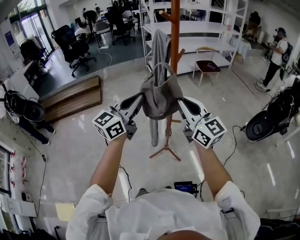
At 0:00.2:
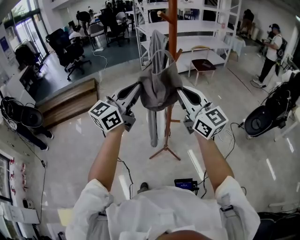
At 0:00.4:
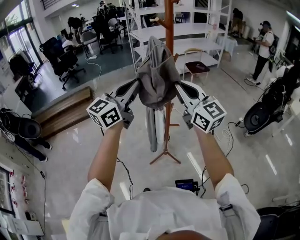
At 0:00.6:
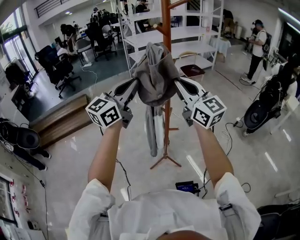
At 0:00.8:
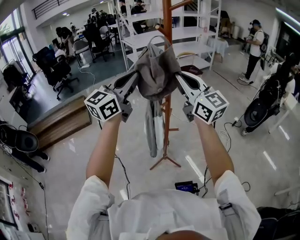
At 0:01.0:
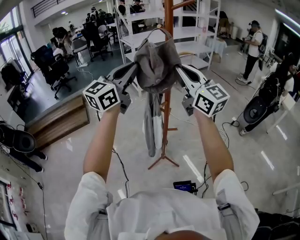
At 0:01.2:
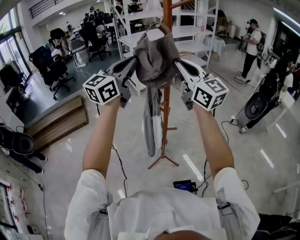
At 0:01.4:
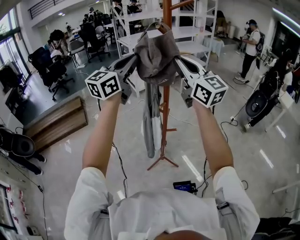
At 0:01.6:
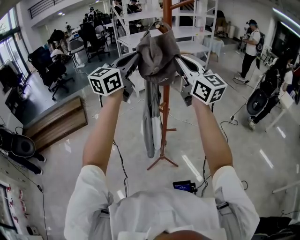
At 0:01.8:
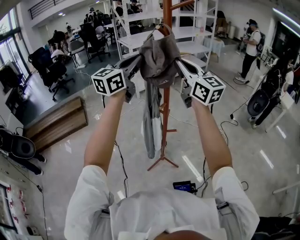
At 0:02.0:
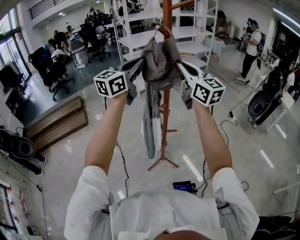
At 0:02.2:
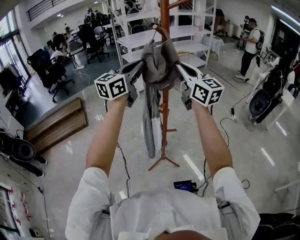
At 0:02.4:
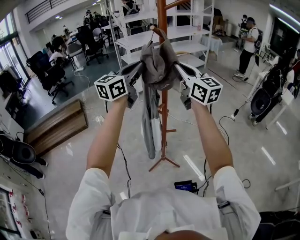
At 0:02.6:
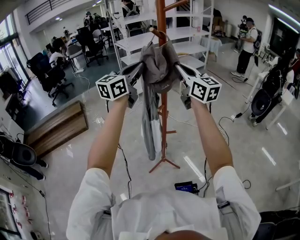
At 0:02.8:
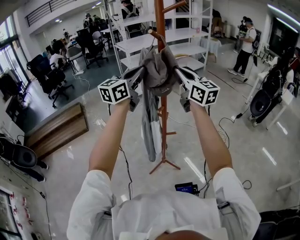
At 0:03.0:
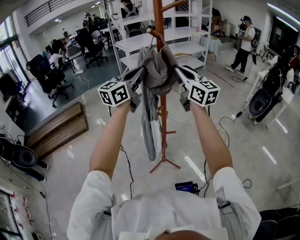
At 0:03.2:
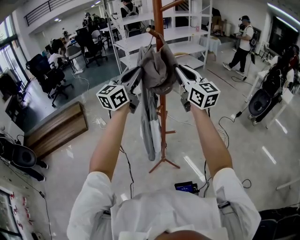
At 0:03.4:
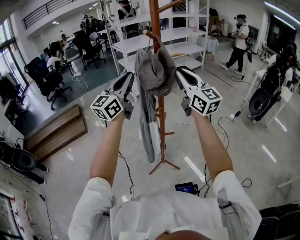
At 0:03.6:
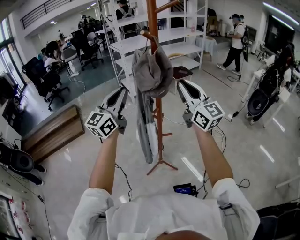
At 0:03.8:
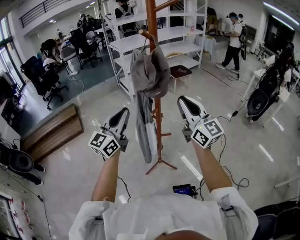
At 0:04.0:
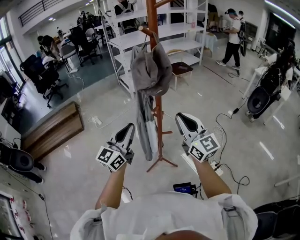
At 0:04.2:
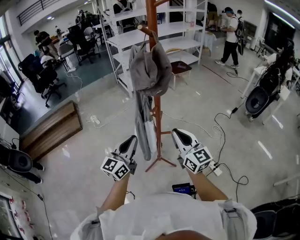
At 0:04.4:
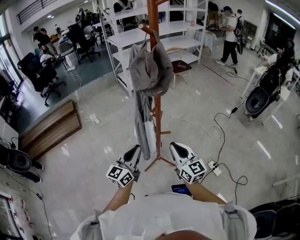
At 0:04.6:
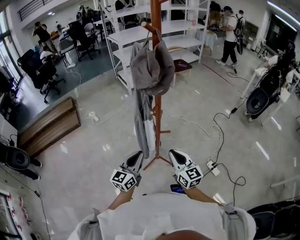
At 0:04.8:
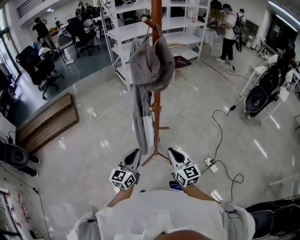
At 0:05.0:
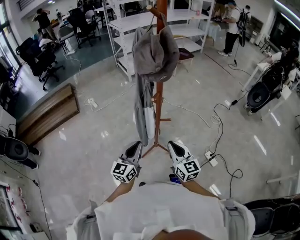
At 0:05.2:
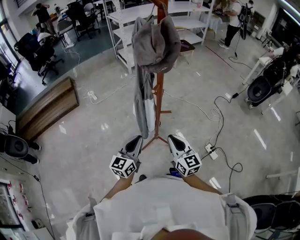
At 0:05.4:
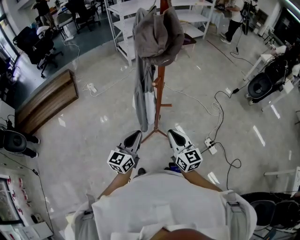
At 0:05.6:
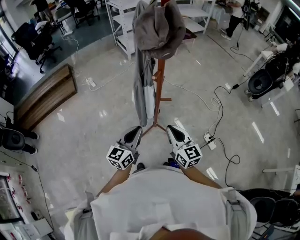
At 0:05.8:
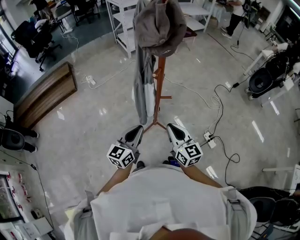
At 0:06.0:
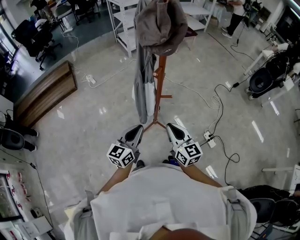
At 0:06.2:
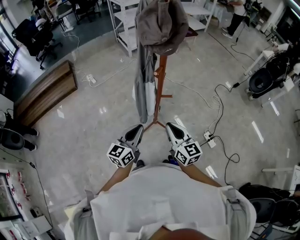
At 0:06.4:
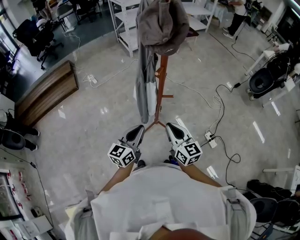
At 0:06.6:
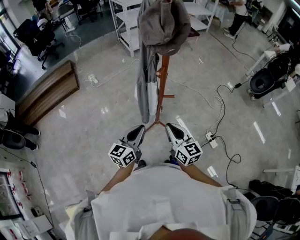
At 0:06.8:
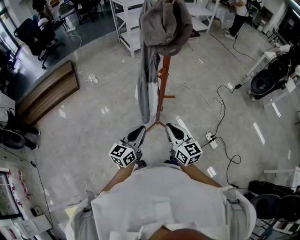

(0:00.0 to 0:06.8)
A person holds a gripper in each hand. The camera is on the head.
0:00.0 - 0:01.4: Both grippers move upward and forward, some 20 cm.
0:01.4 - 0:02.8: The left gripper goes about 5 cm downward. The right gripper goes approximately 10 cm downward and forward.
0:02.8 - 0:04.0: The grippers both shift downward and backward by some 20 cm.
0:04.0 - 0:05.4: The right gripper goes approximately 20 cm downward, and turns by approximately 20 degrees. The left gripper goes about 20 cm downward and backward.
0:05.4 - 0:06.8: The grippers stay close to where they were, moving slightly.

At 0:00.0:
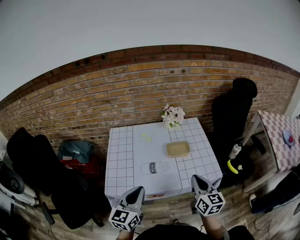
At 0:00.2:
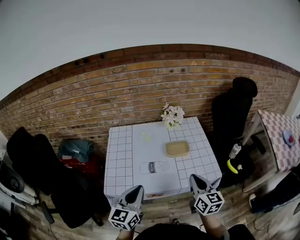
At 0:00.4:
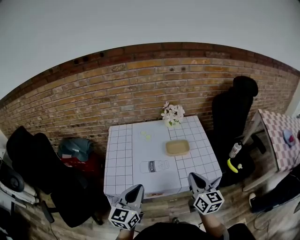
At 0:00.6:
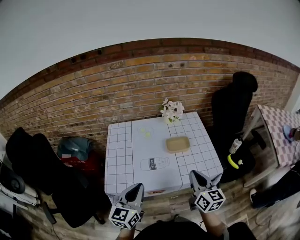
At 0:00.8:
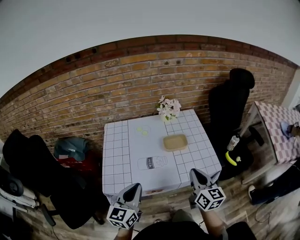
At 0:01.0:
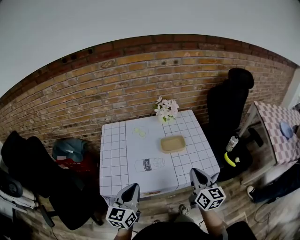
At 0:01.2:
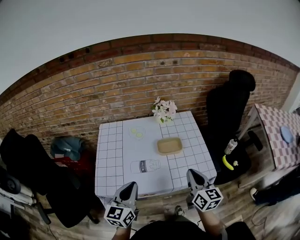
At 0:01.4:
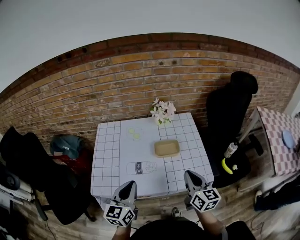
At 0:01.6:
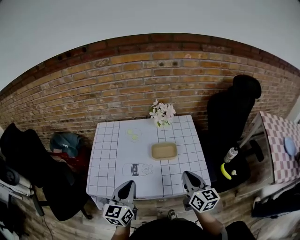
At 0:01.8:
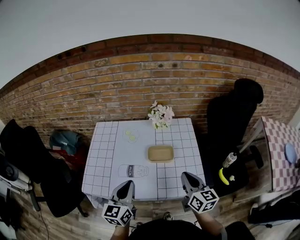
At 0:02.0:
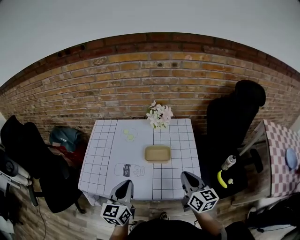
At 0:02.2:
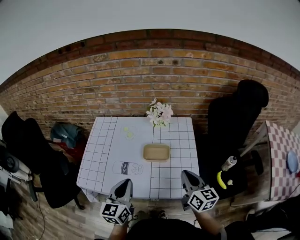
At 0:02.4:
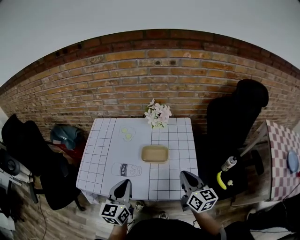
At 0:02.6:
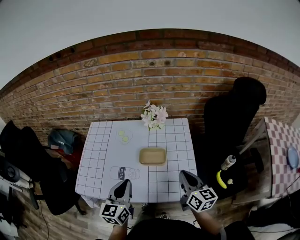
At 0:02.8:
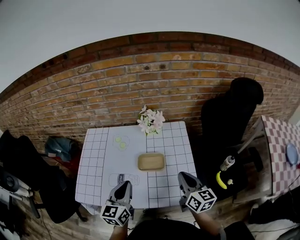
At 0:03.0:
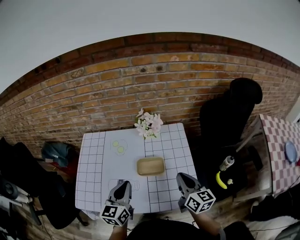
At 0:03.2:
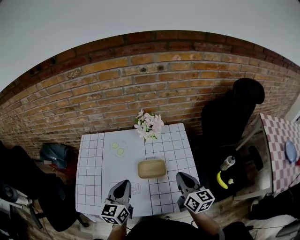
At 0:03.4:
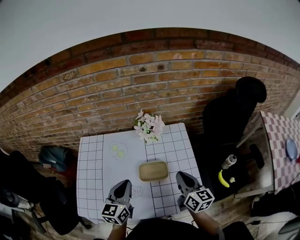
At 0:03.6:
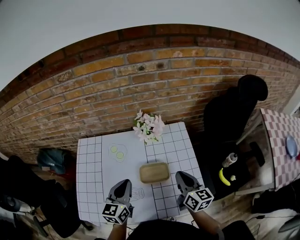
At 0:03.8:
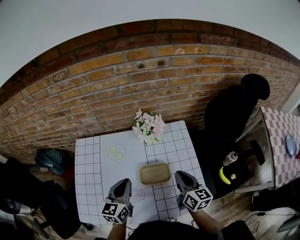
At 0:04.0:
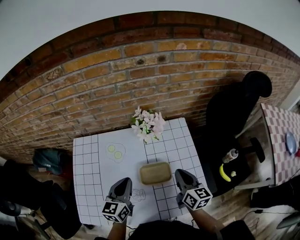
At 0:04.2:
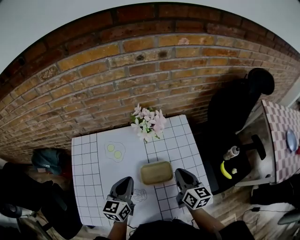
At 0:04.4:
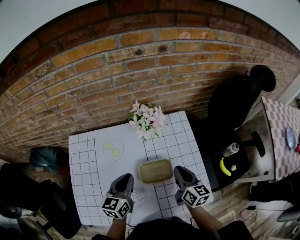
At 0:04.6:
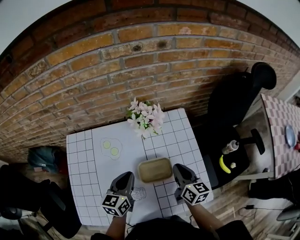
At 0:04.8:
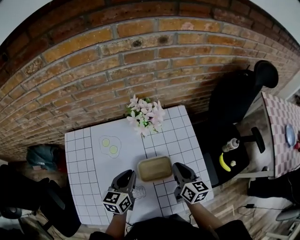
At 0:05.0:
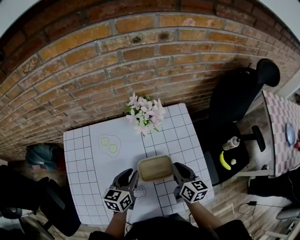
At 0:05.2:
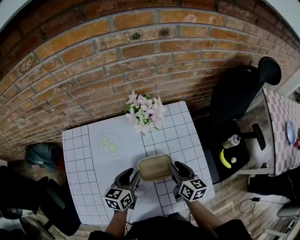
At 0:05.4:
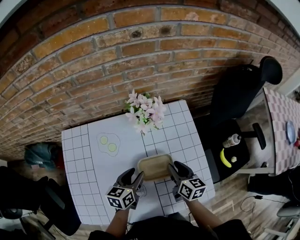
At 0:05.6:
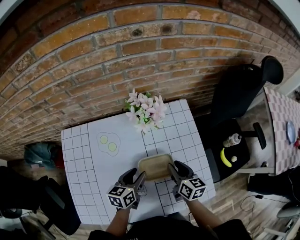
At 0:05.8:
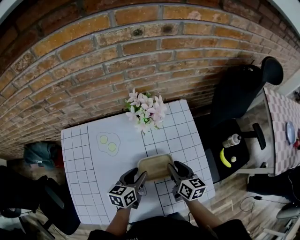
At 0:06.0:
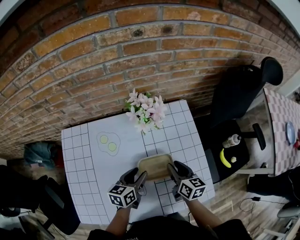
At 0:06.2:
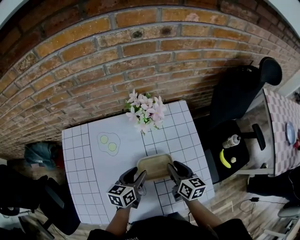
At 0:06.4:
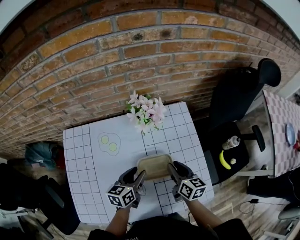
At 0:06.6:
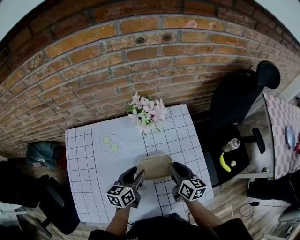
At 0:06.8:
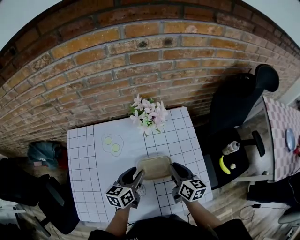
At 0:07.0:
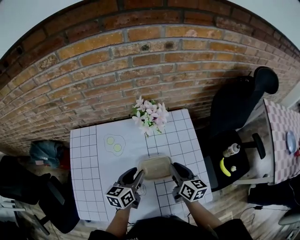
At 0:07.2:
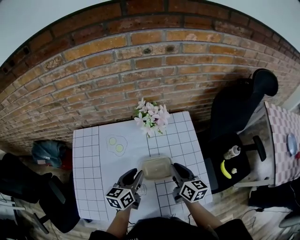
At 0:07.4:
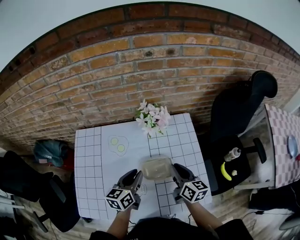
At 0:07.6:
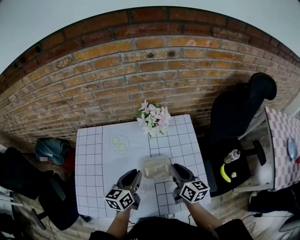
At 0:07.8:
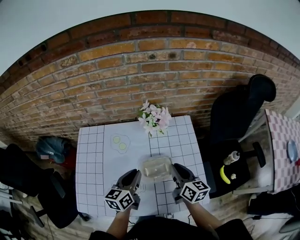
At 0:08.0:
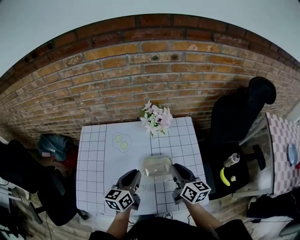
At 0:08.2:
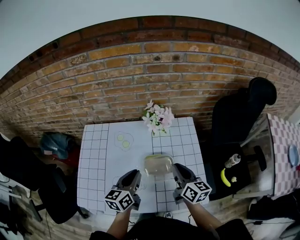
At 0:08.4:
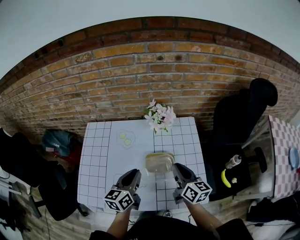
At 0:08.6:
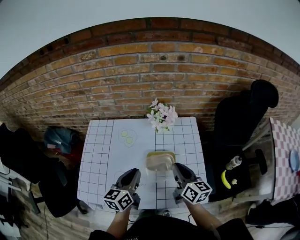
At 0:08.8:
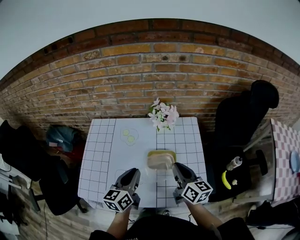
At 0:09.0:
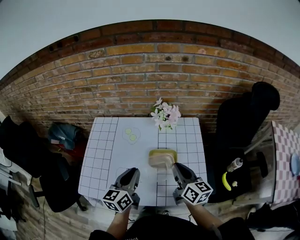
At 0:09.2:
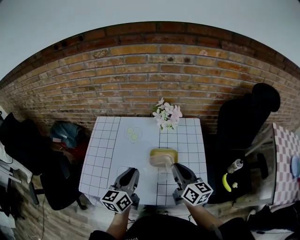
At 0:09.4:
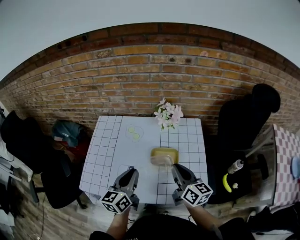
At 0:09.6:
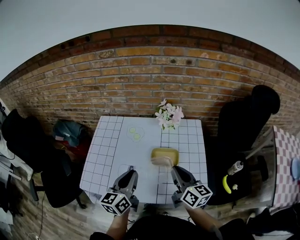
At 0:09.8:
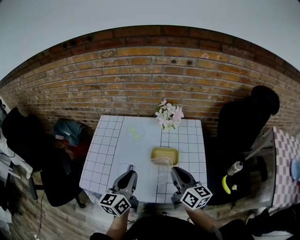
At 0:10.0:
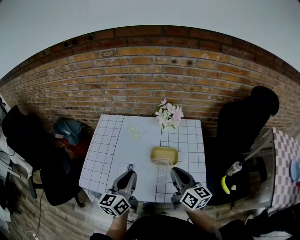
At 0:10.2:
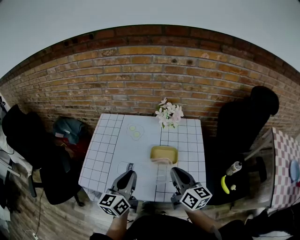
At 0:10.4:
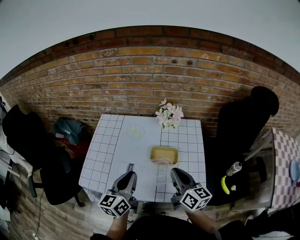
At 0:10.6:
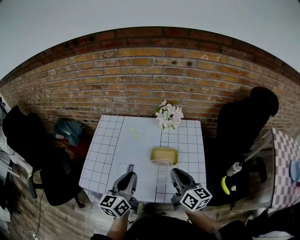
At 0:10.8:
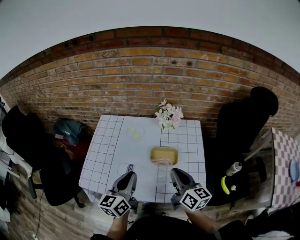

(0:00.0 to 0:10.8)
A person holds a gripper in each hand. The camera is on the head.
0:00.0 - 0:01.6: Both grippers move forward and to the right, roughly 10 cm.
0:01.6 - 0:03.0: Both grippers travel together forward and to the right, roughly 15 cm.
0:03.0 - 0:04.6: Both grippers move forward and downward, roughly 15 cm.
0:04.6 - 0:06.2: The two grippers go approximately 5 cm downward. The left gripper opens, while the right gripper opens up.
0:06.2 - 0:07.8: Both grippers travel together upward, some 10 cm. The left gripper closes its fingers.
0:07.8 - 0:09.2: Both grippers travel together backward and upward, roughly 10 cm.
0:09.2 - 0:10.8: The right gripper ends up some 5 cm from where it was. Meanwhile the left gripper is displaced backward by roughly 5 cm.

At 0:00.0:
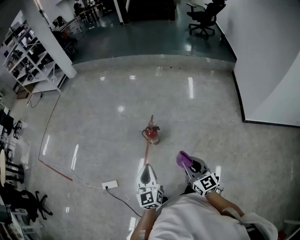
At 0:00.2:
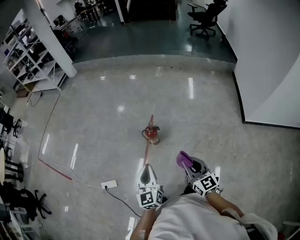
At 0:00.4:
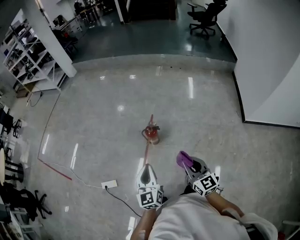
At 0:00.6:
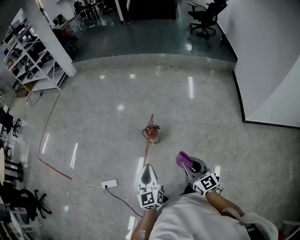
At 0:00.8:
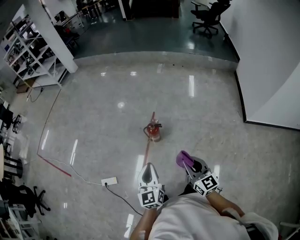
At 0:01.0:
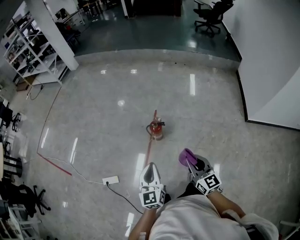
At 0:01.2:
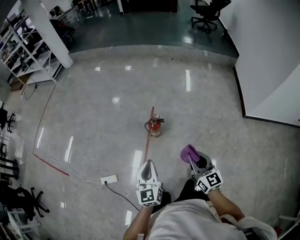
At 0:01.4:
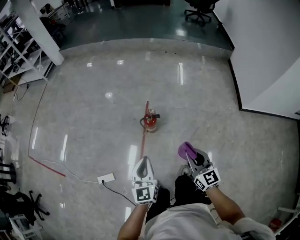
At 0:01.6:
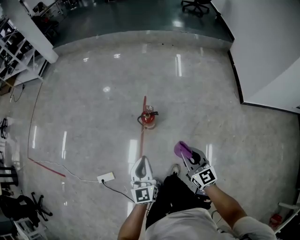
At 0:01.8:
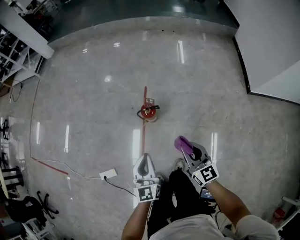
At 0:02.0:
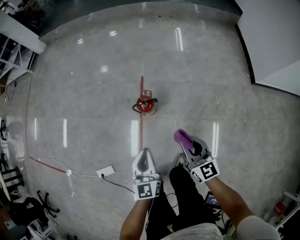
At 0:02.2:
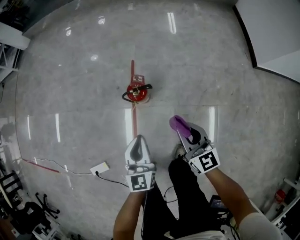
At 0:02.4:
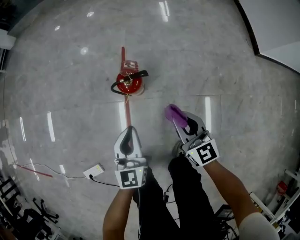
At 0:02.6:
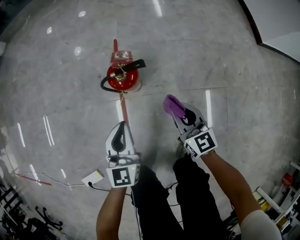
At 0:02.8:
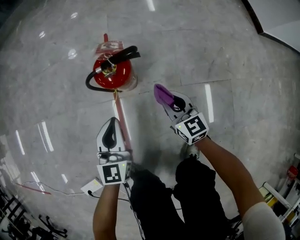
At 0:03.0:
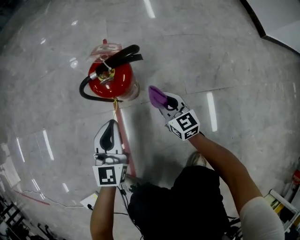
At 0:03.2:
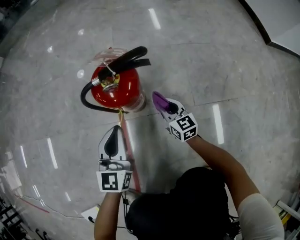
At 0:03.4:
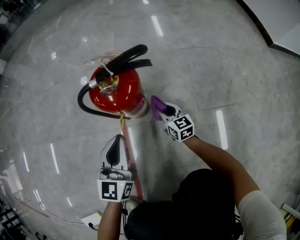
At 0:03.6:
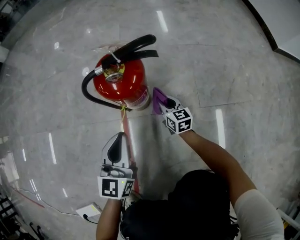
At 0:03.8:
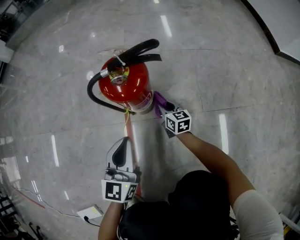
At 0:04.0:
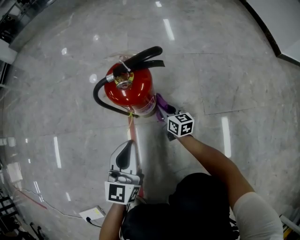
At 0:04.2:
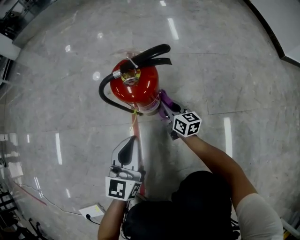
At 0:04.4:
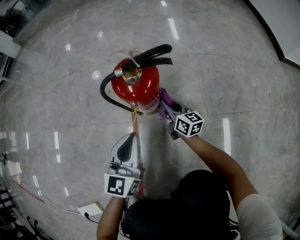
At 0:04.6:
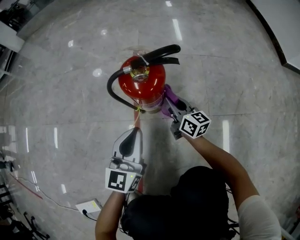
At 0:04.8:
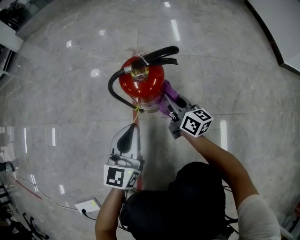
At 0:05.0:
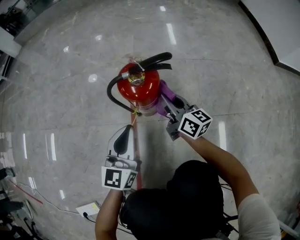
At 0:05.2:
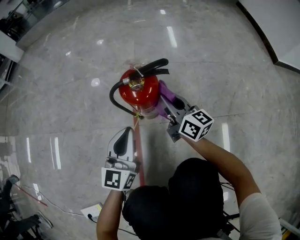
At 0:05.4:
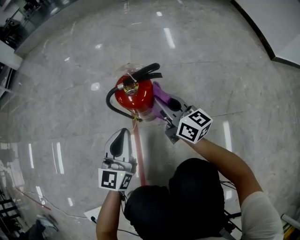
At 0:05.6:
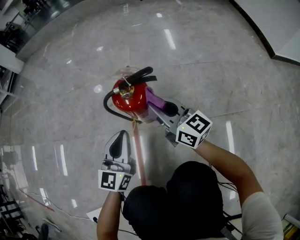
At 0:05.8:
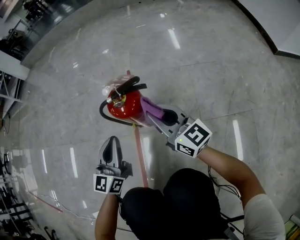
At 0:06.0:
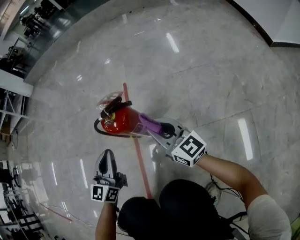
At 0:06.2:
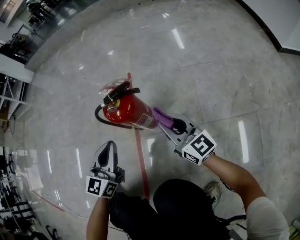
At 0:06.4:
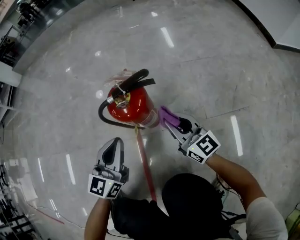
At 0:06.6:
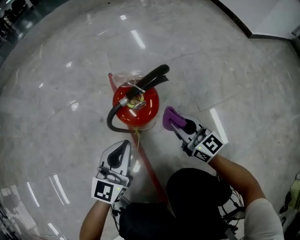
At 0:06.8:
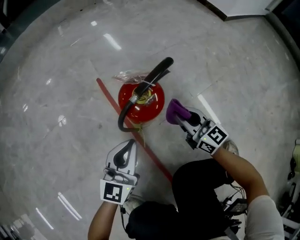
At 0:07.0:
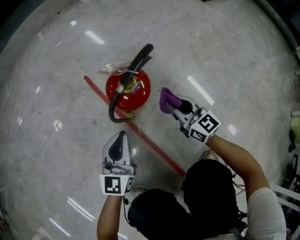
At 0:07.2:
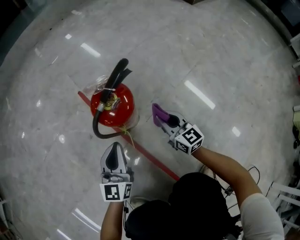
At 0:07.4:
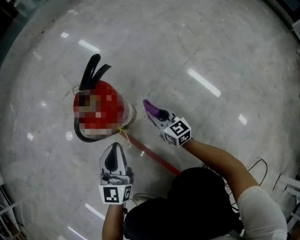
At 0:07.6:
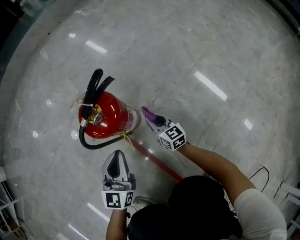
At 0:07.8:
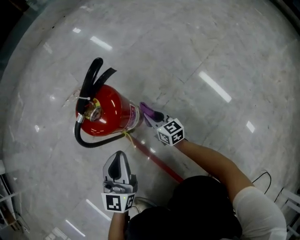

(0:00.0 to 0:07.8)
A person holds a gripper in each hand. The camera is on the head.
0:00.0 - 0:01.6: Both grippers travel together forward, downward and to the left, approximately 15 cm.
0:01.6 - 0:03.2: Both grippers move downward, approximately 70 cm. The left gripper rotates roughly 20 degrees.
0:03.2 - 0:04.6: The right gripper is displaced upward by about 5 cm, and turns by about 20 degrees.
0:04.6 - 0:06.2: The right gripper moves upward and backward, about 15 cm, and turns by some 20 degrees. The left gripper shifts approximately 5 cm upward.
0:06.2 - 0:07.8: The right gripper travels downward by roughly 25 cm, and rotates roughly 50 degrees. The left gripper travels downward by about 10 cm, and changes its angle by roughly 30 degrees.
